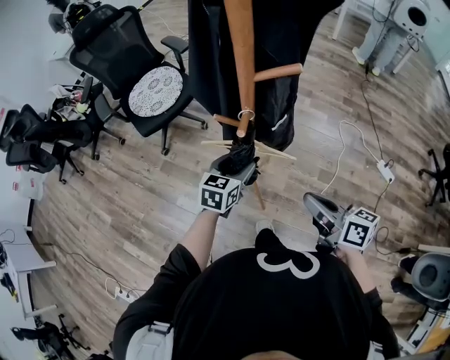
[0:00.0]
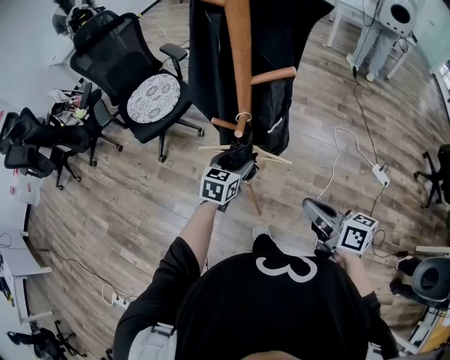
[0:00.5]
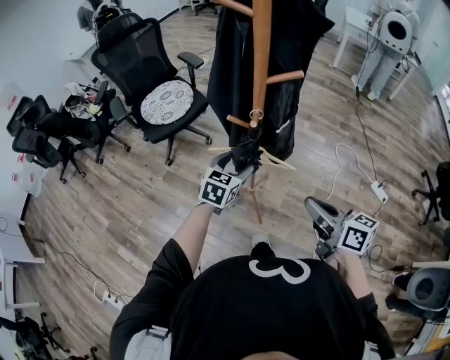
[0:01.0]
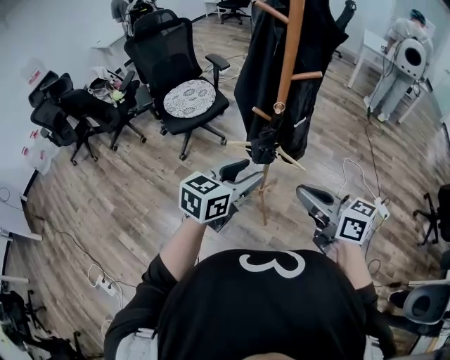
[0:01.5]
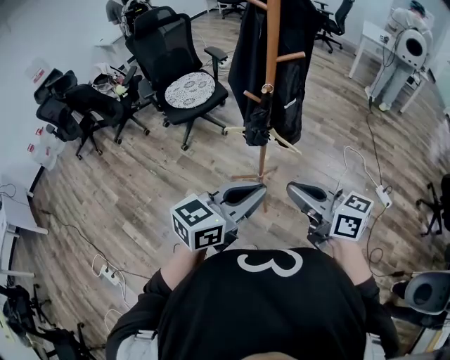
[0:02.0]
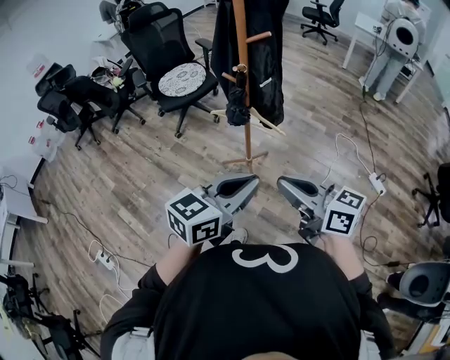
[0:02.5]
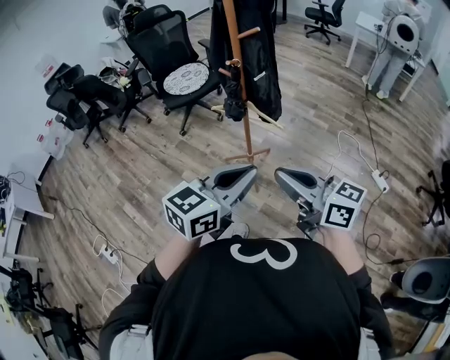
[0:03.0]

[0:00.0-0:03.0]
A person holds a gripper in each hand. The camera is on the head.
0:00.0 to 0:01.5: The left gripper shifts about 25 cm upward and backward; the right gripper heads upward, to the left and backward, covering approximately 20 cm, and changes its angle by roughly 20 degrees.
0:01.5 to 0:03.0: Both grippers travel together backward and to the right, approximately 25 cm. The left gripper closes up.

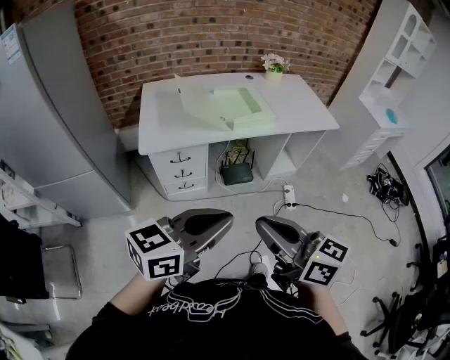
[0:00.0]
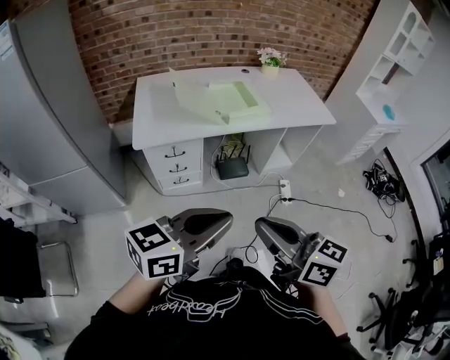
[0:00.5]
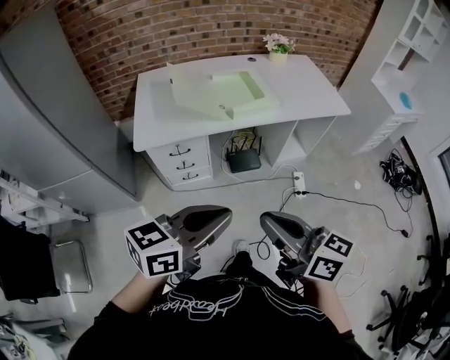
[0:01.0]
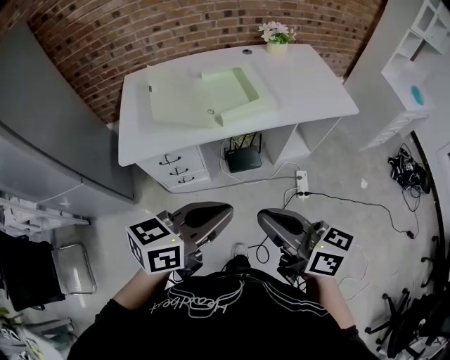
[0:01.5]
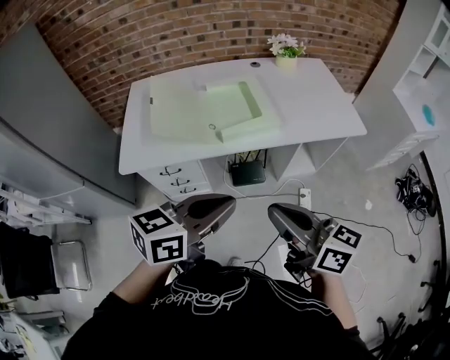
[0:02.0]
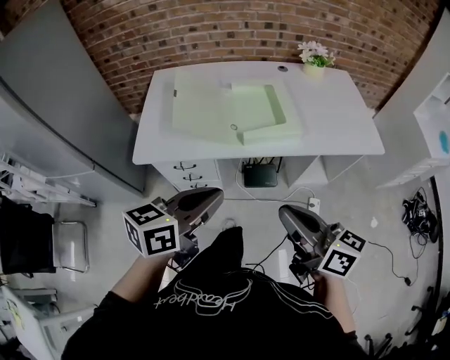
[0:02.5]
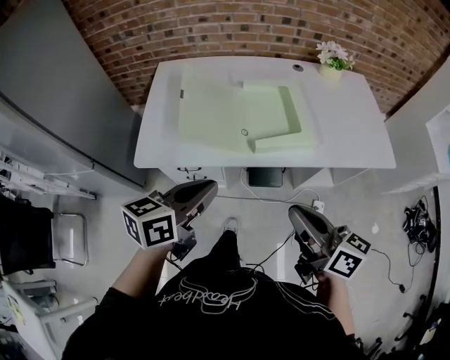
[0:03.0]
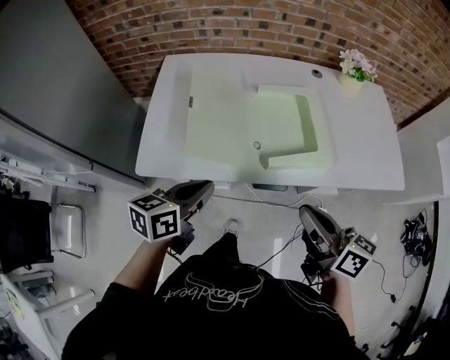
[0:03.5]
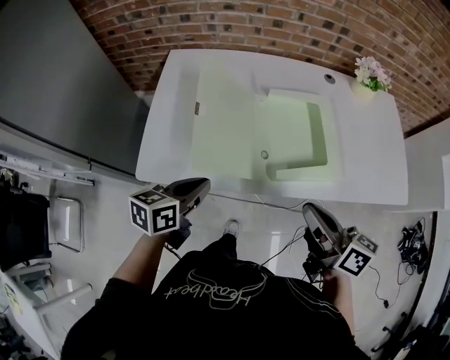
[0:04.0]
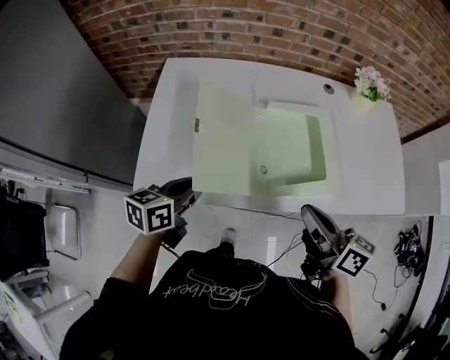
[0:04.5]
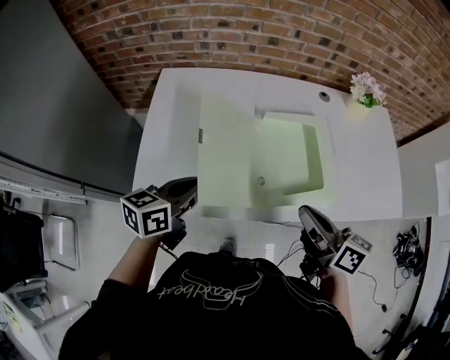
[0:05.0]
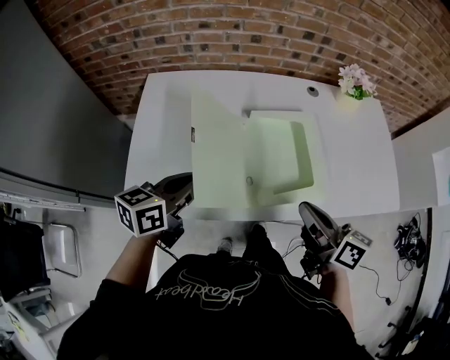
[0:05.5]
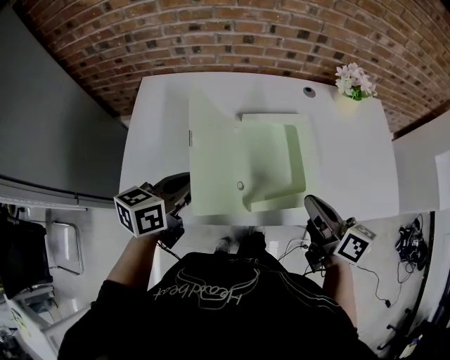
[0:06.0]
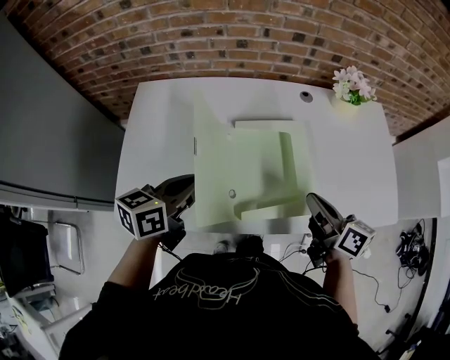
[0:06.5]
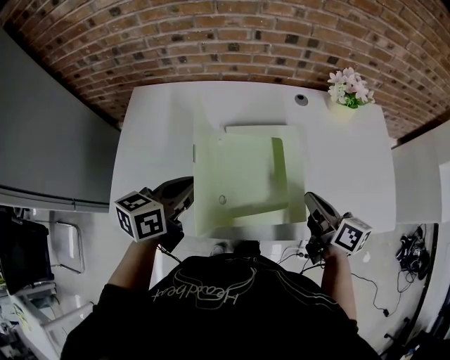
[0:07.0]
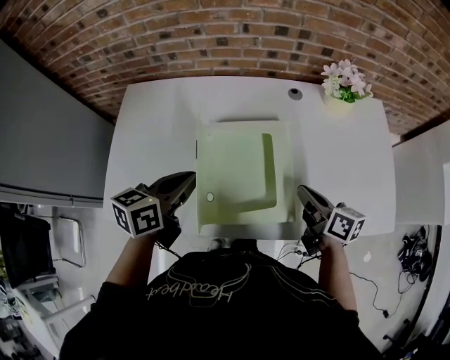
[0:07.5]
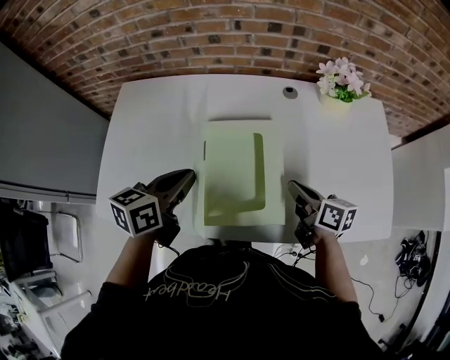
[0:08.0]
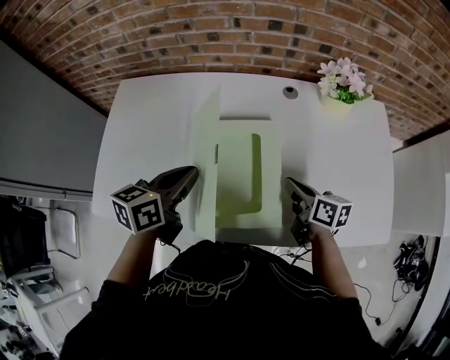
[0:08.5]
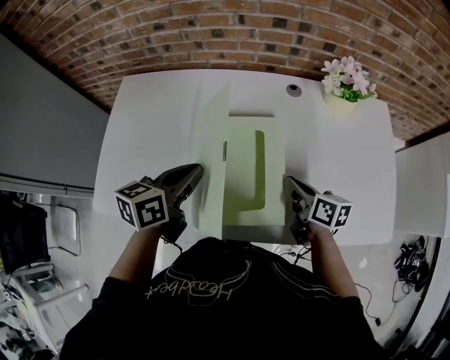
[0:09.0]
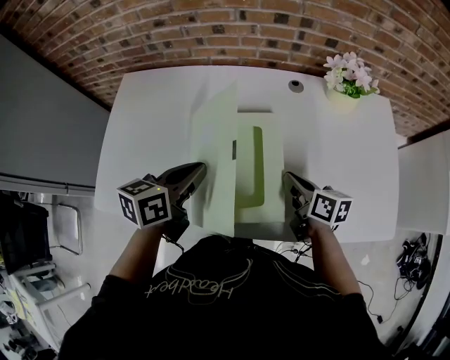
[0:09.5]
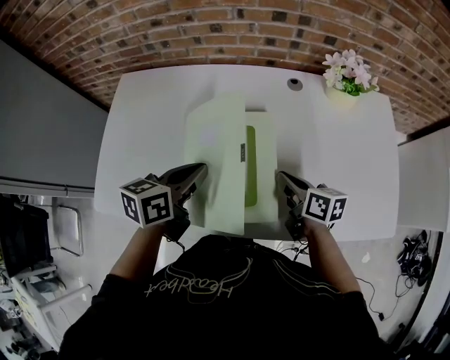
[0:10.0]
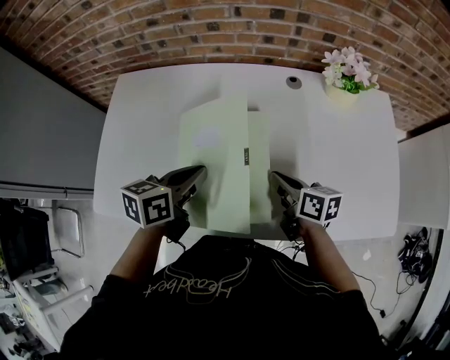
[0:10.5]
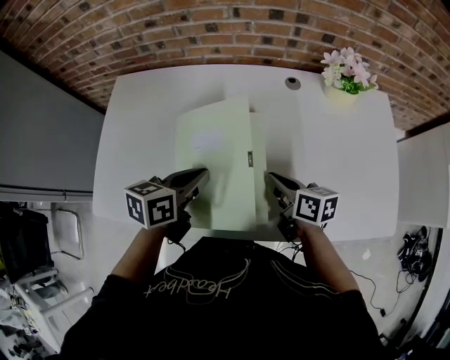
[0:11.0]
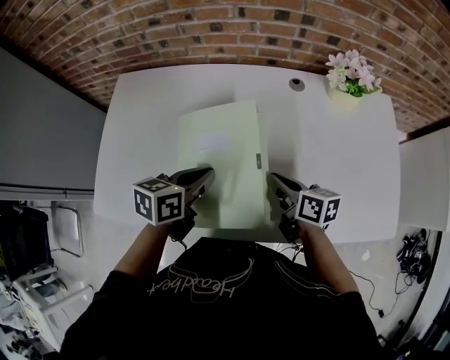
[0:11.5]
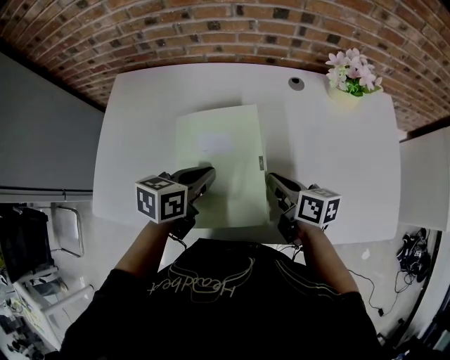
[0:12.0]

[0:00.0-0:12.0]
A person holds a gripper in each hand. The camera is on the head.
0:00.0 to 0:02.0: The right gripper shifts approximately 25 cm forward and to the right, while the left gripper moves forward, approximately 25 cm.
0:02.0 to 0:04.0: The left gripper shifts about 35 cm forward, to the left and downward, and rotates some 30 degrees, while the right gripper goes approximately 25 cm forward.
0:04.0 to 0:06.0: The right gripper moves forward and to the right, some 15 cm. Meanwhile the left gripper goes about 15 cm forward and upward.
0:06.0 to 0:08.0: The left gripper heads to the right and forward, covering some 10 cm. Meanwhile the right gripper shifts approximately 20 cm downward, forward and to the right.
0:08.0 to 0:10.0: The grippers make only small movements.
0:10.0 to 0:12.0: The left gripper shifts by some 5 cm.

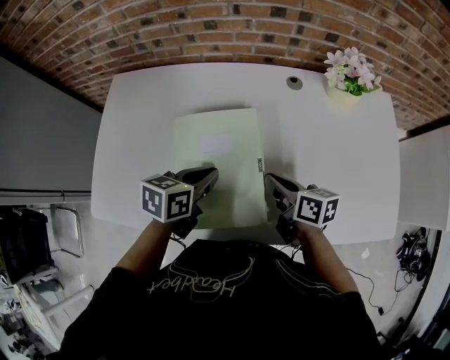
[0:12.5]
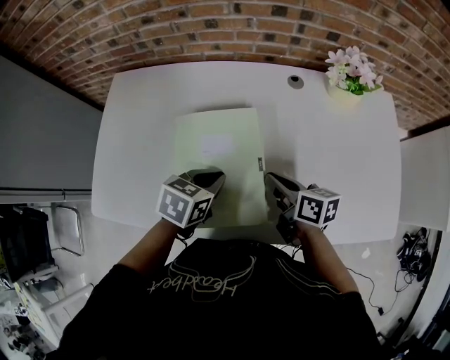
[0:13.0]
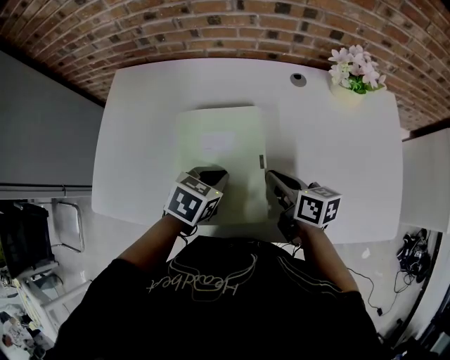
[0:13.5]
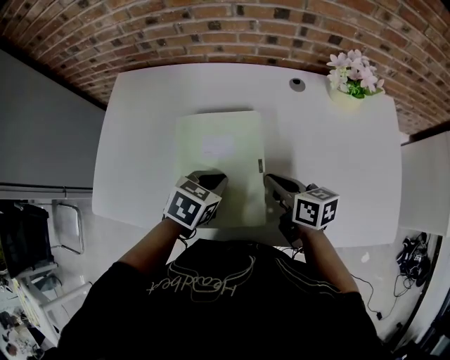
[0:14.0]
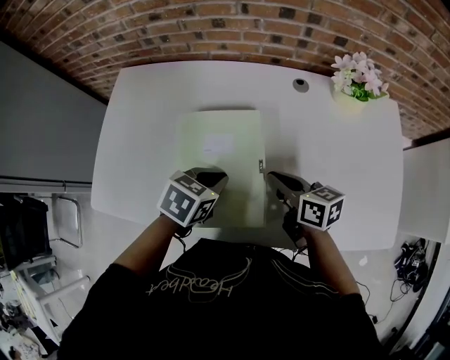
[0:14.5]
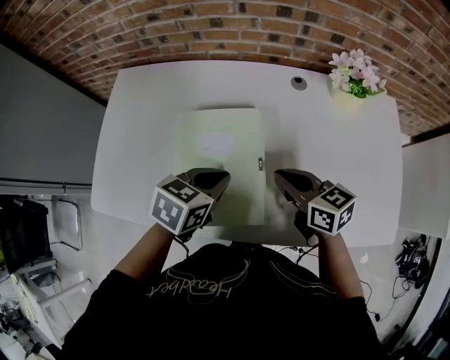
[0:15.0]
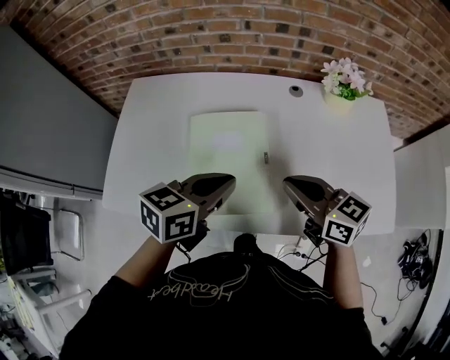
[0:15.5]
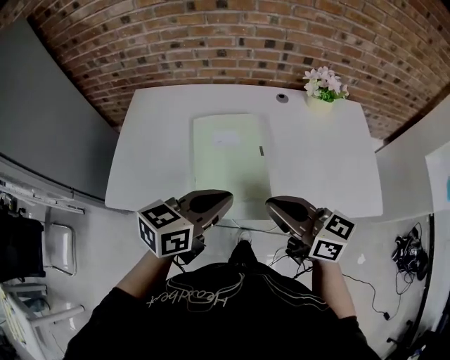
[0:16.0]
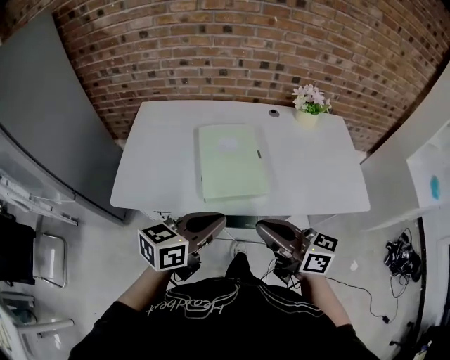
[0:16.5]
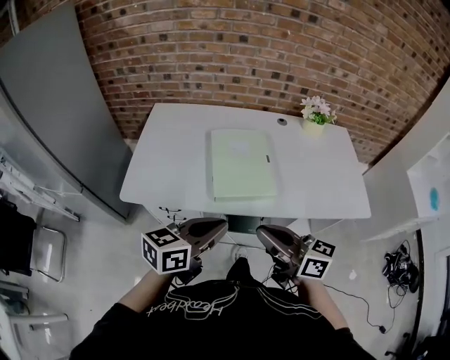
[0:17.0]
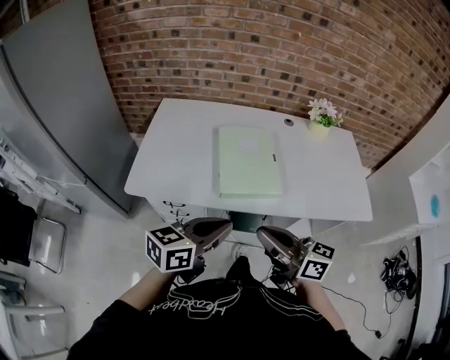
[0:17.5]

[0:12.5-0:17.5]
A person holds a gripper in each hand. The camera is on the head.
0:12.5 to 0:15.0: The right gripper changes its angle by about 20 degrees.
0:15.0 to 0:17.5: The left gripper travels backward and upward by about 30 cm, and tips its fingers upward by about 30 degrees, while the right gripper is displaced backward, upward and to the left by roughly 35 cm, and swivels roughly 30 degrees.

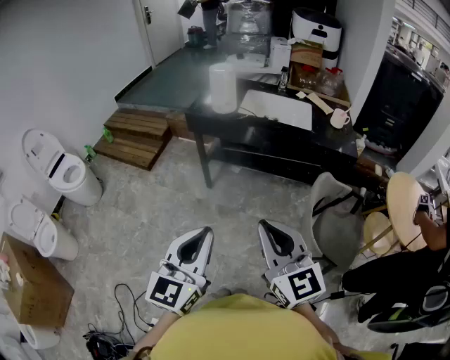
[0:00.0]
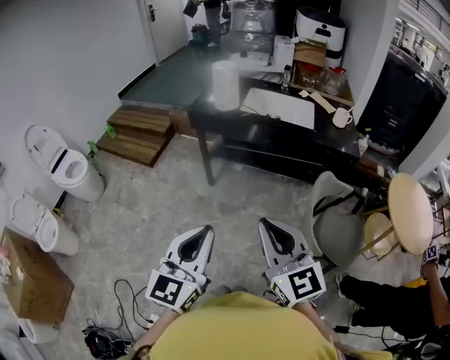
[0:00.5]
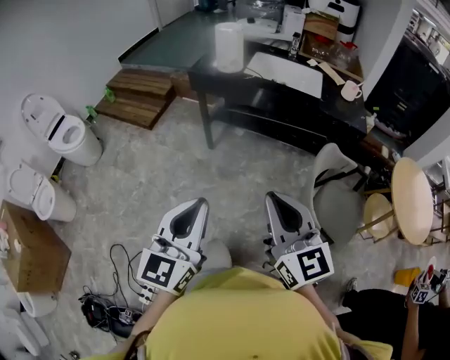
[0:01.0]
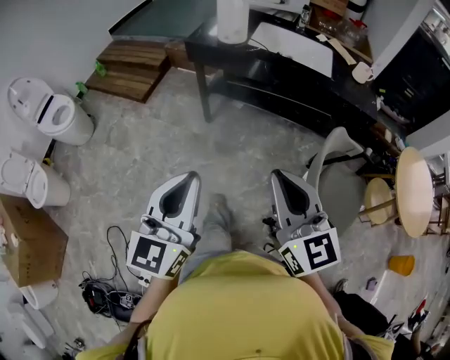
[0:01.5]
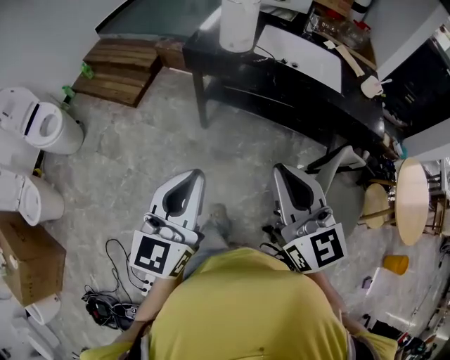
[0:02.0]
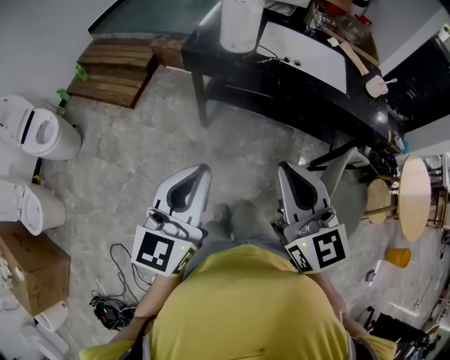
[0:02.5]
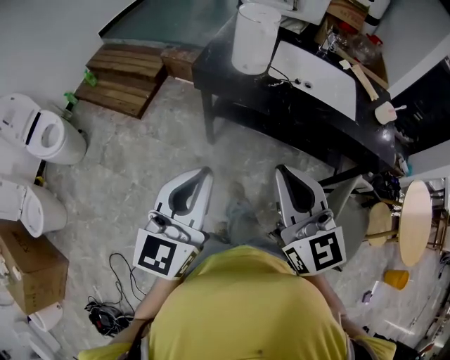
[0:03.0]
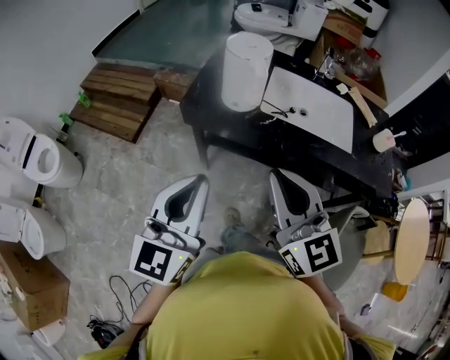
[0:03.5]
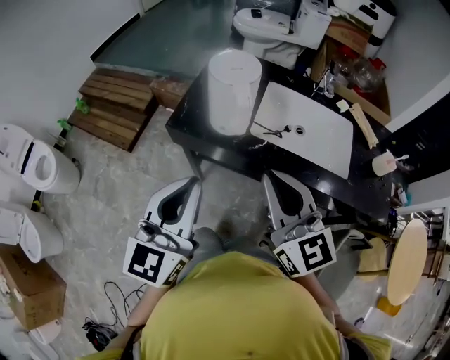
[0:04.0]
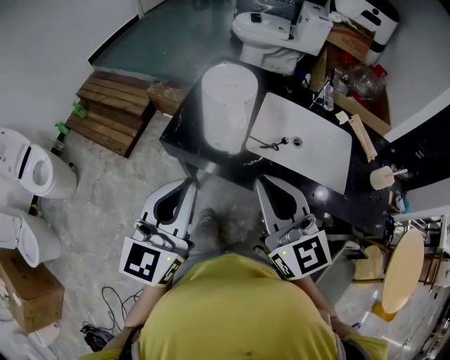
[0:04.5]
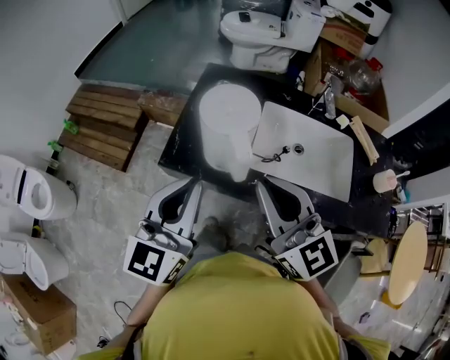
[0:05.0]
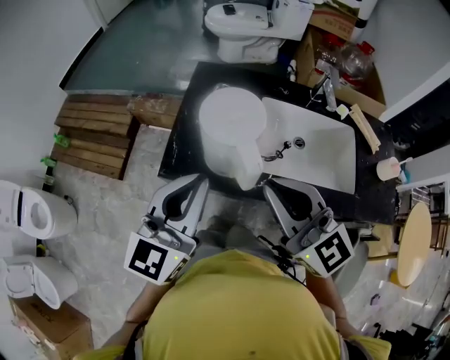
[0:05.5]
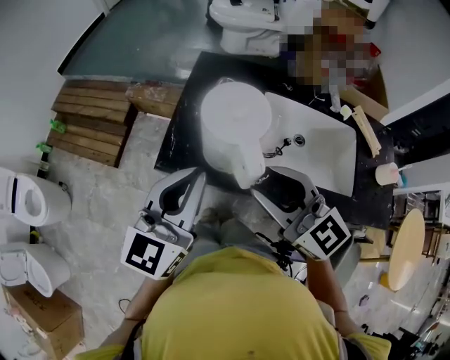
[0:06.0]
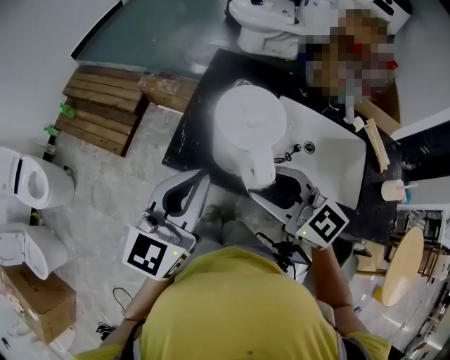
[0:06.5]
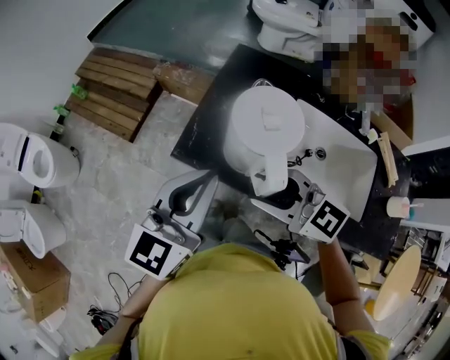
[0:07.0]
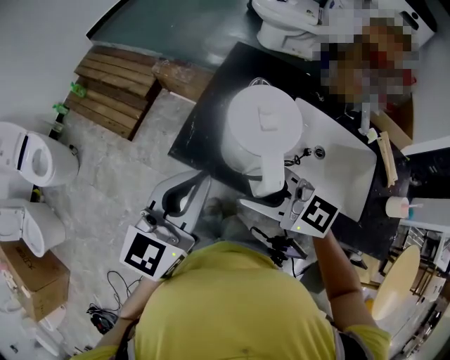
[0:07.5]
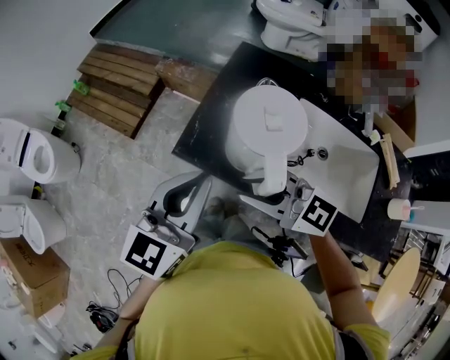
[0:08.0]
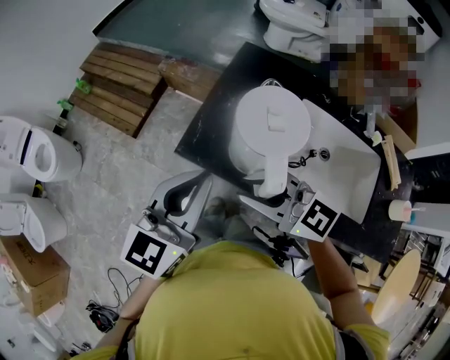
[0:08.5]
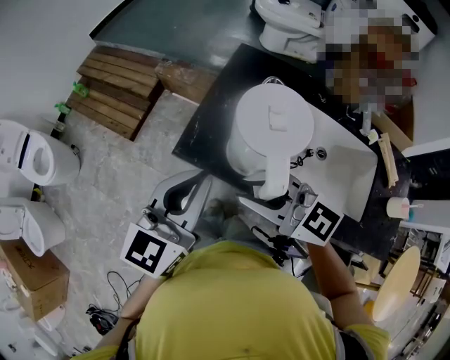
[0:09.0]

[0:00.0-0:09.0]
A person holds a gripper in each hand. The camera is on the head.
0:00.0 to 0:02.0: Both grippers travel together forward, approximately 15 cm.
0:02.0 to 0:04.5: Both grippers travel together forward, about 40 cm.
0:04.5 to 0:07.0: The left gripper heads forward, covering about 15 cm, while the right gripper moves forward, downward and to the left, about 15 cm, turns by some 40 degrees, and opens up.
0:07.0 to 0:09.0: There are only small adjustments of the grippers.
